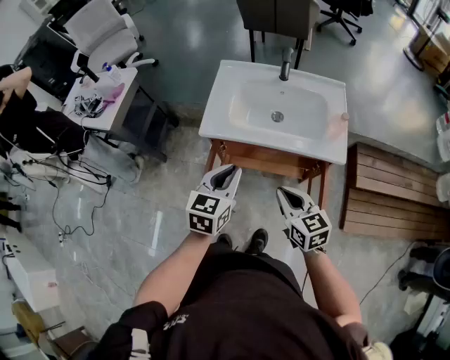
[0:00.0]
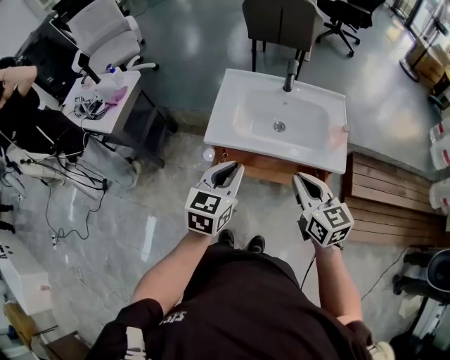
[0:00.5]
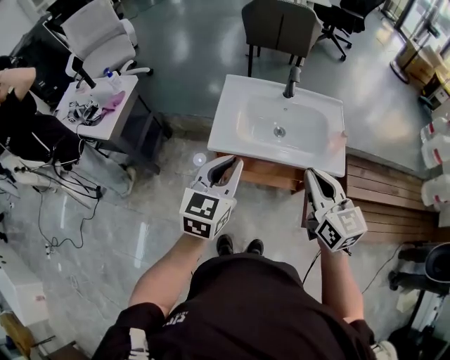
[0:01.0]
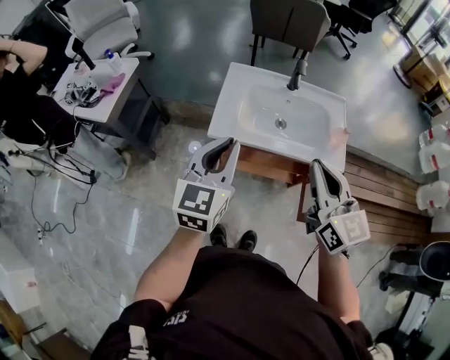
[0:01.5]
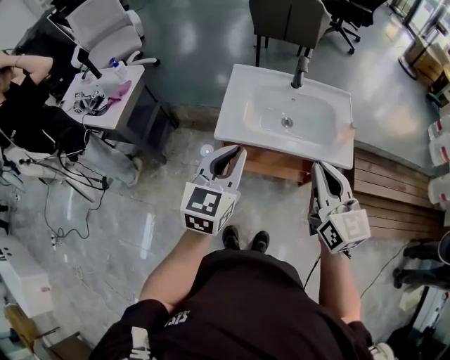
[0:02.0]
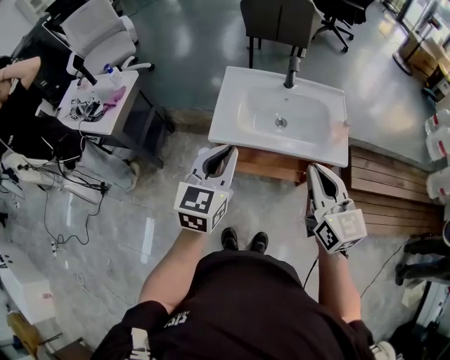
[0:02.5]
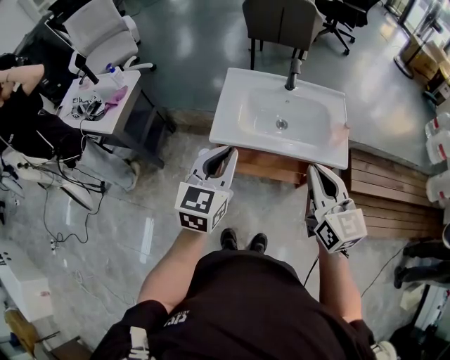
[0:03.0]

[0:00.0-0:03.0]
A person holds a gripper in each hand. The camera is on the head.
0:00.0 to 0:01.5: The right gripper shifts about 20 cm upward, and swivels about 30 degrees. The left gripper moves upward and to the left, about 15 cm.
0:01.5 to 0:03.0: There are only small adjustments of the grippers.

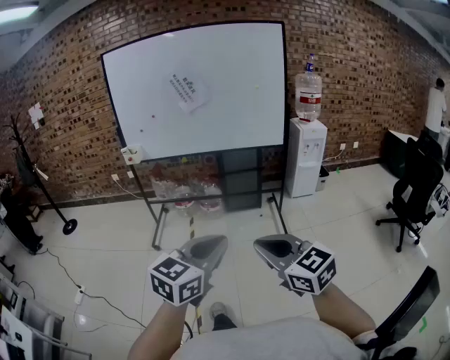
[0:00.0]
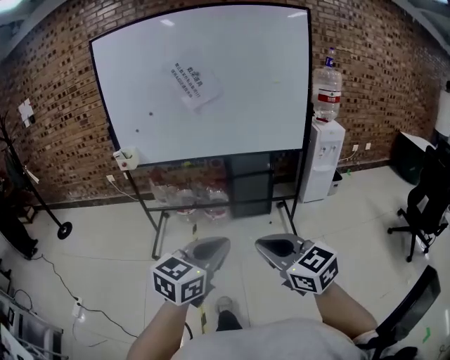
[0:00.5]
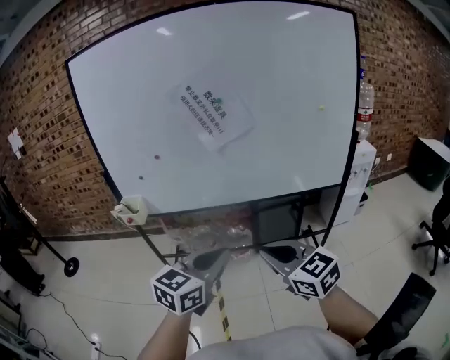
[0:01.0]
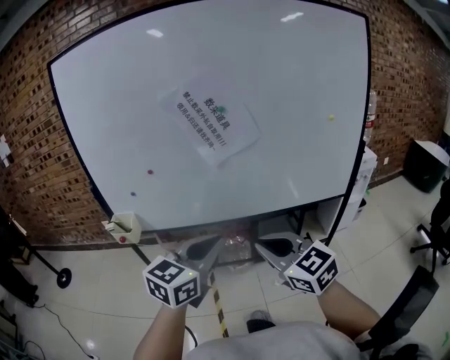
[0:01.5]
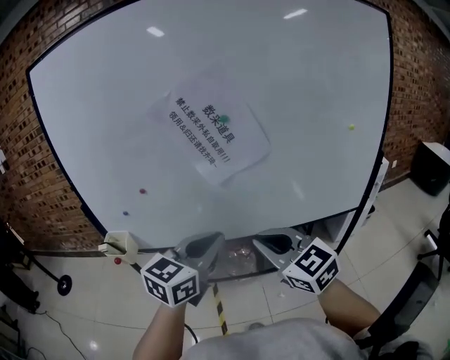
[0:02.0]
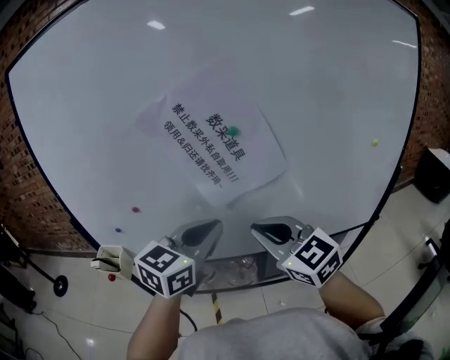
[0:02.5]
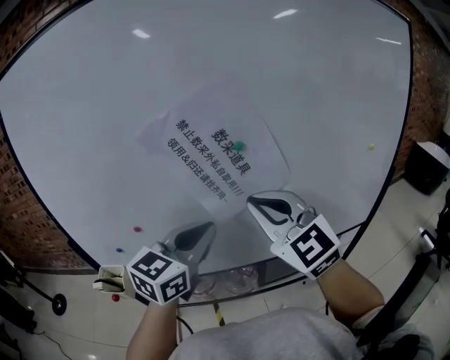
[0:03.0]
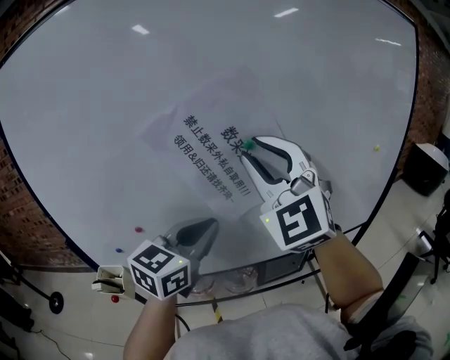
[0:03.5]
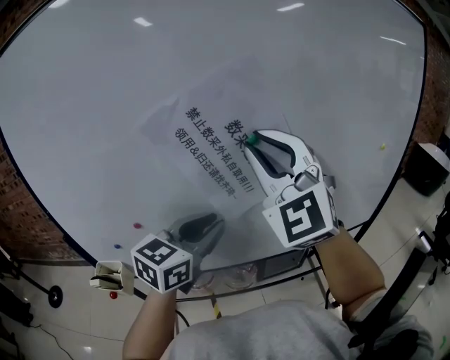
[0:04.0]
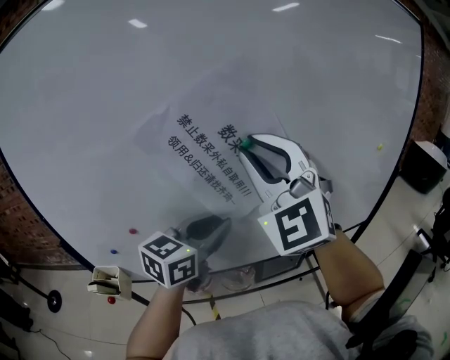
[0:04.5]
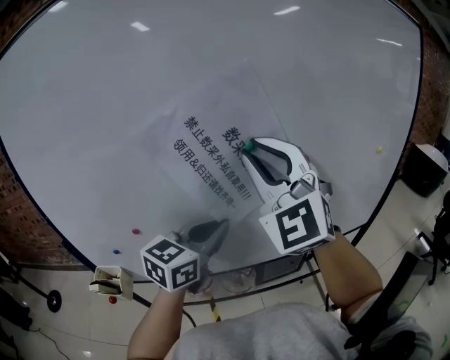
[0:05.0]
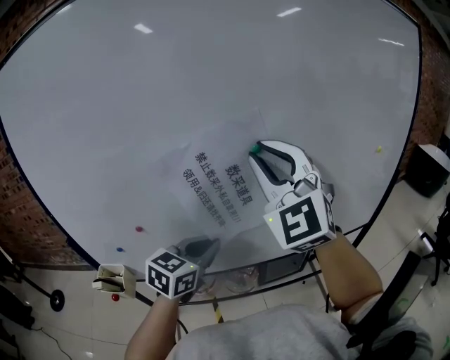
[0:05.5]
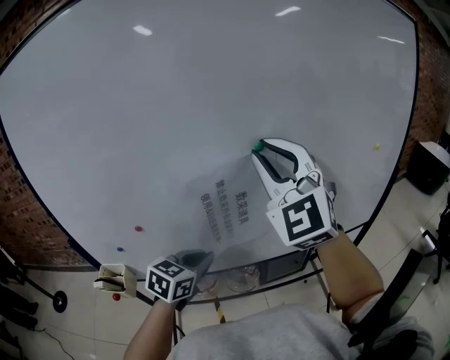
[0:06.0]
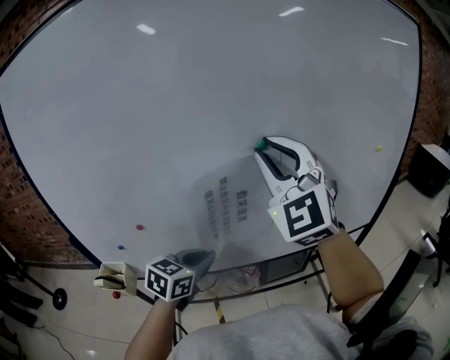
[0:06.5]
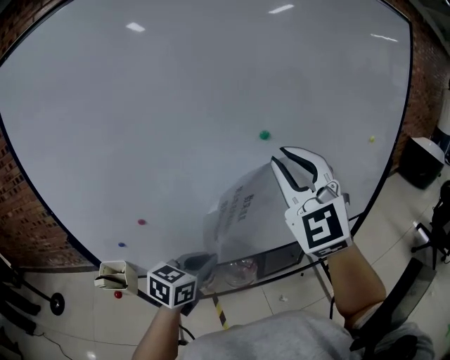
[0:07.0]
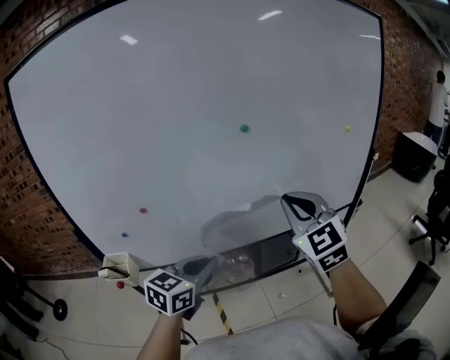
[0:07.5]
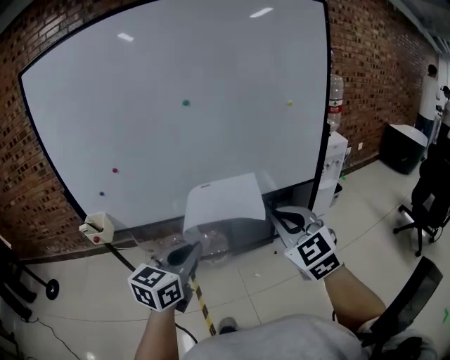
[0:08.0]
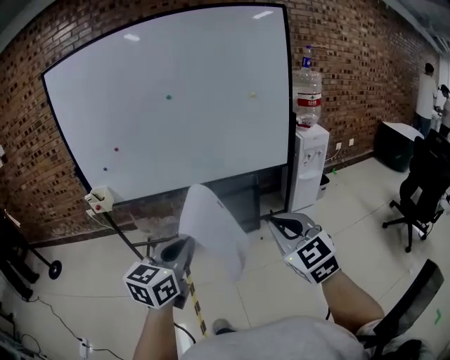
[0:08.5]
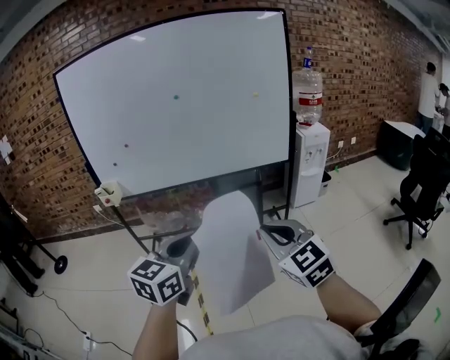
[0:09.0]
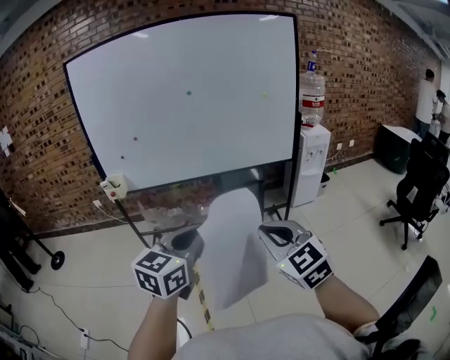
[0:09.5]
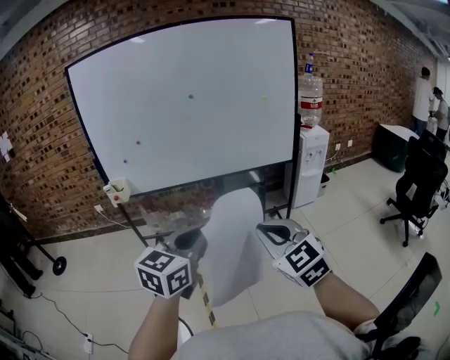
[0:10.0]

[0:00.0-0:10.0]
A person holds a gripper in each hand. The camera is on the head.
0:00.0 to 0:02.0: Both grippers are carried forward, roughly 70 cm.
0:02.0 to 0:04.0: The left gripper moves forward, about 15 cm; the right gripper shifts roughly 30 cm upward and forward, and changes its angle by about 50 degrees.
0:04.0 to 0:06.0: The left gripper heads downward, covering about 15 cm.
0:06.0 to 0:08.0: The right gripper travels backward, to the right and downward by some 40 cm, and rotates roughly 30 degrees; the left gripper travels backward and to the right by some 30 cm.
0:08.0 to 0:10.0: The grippers both shift backward by approximately 30 cm.

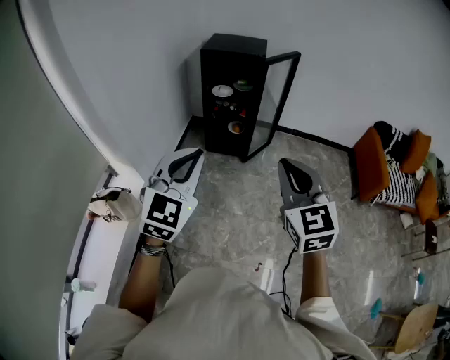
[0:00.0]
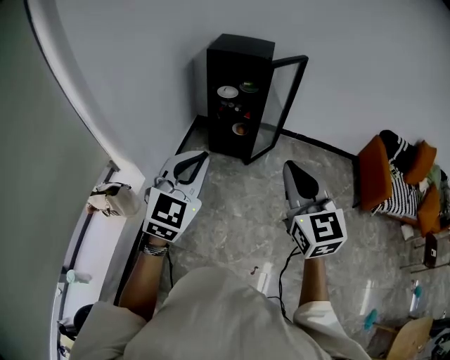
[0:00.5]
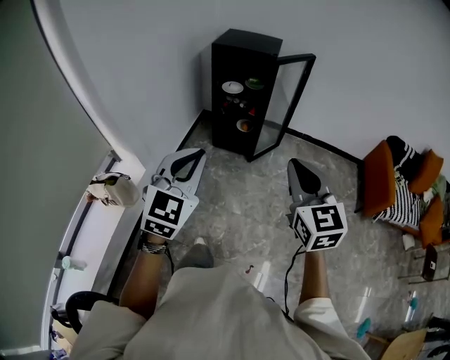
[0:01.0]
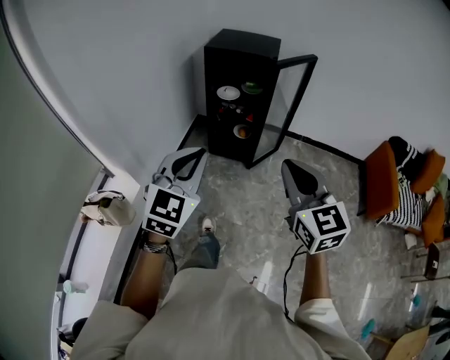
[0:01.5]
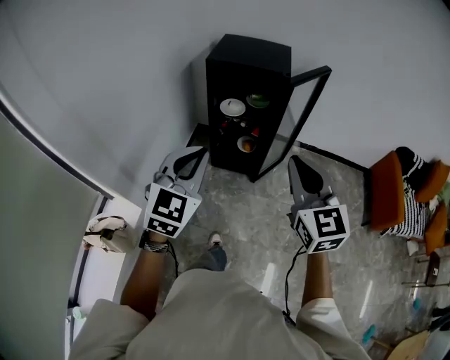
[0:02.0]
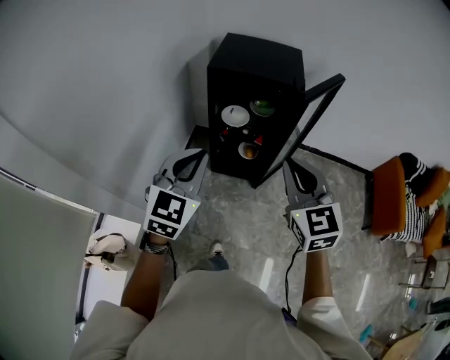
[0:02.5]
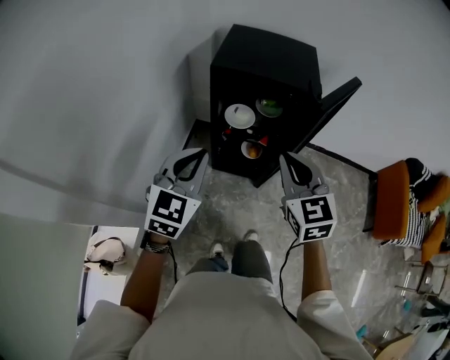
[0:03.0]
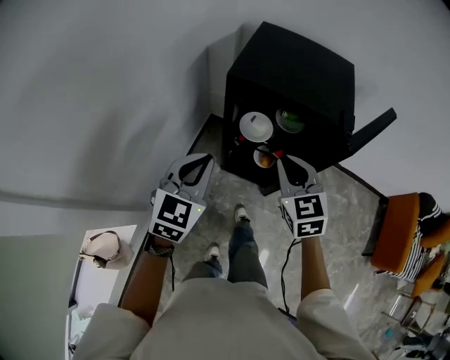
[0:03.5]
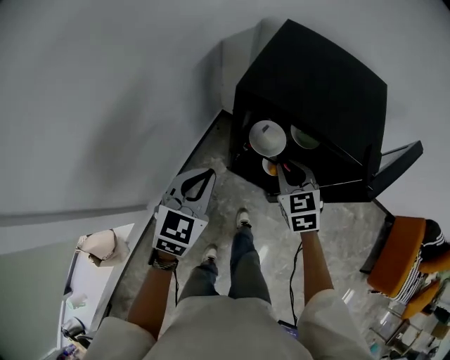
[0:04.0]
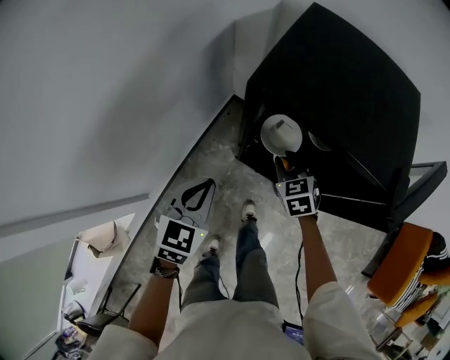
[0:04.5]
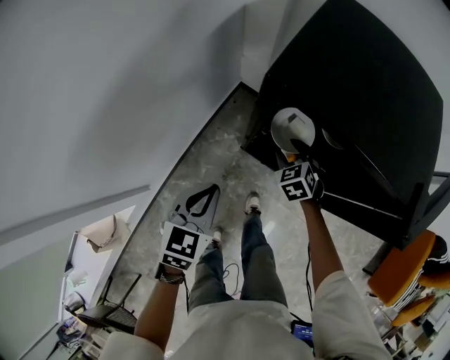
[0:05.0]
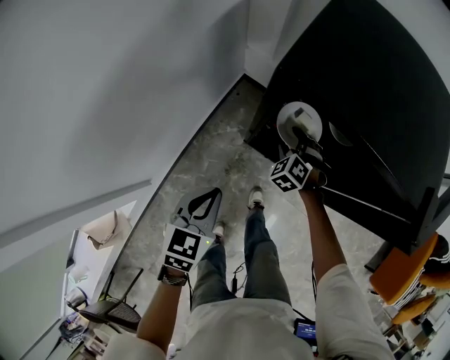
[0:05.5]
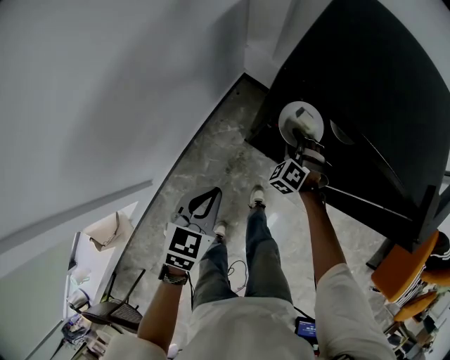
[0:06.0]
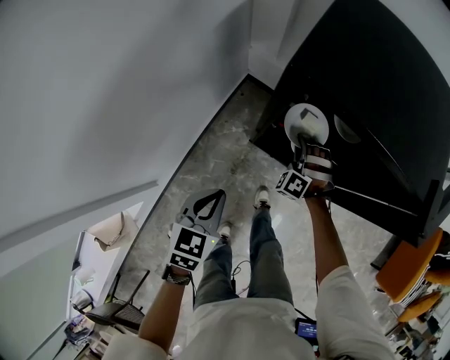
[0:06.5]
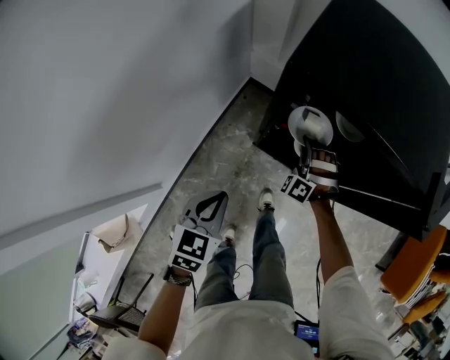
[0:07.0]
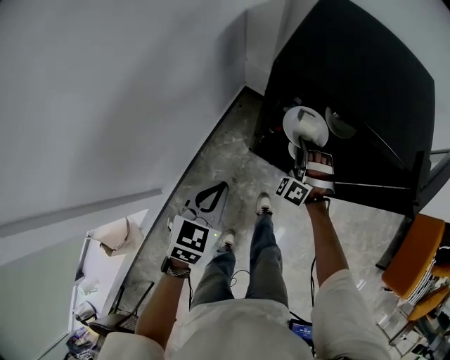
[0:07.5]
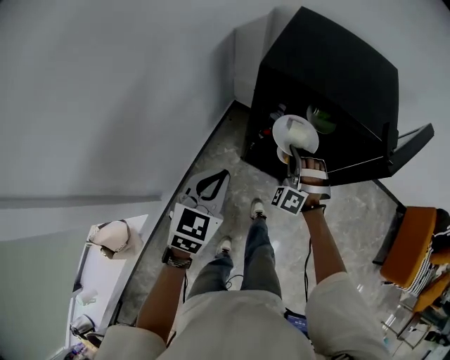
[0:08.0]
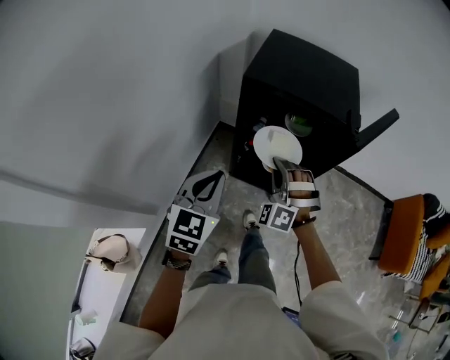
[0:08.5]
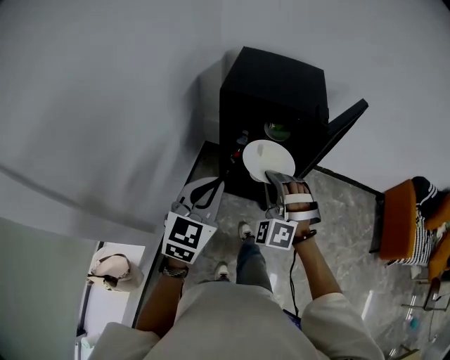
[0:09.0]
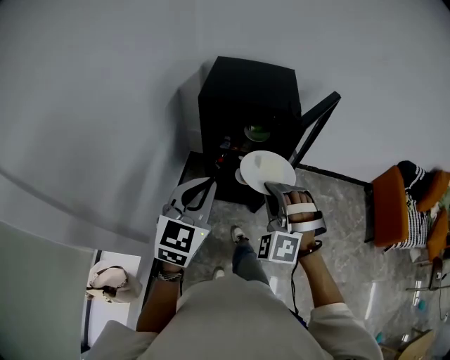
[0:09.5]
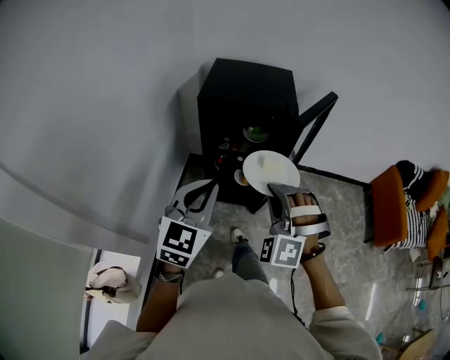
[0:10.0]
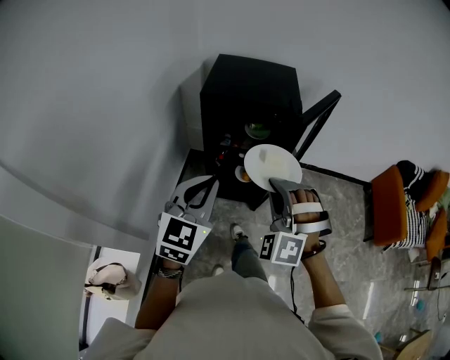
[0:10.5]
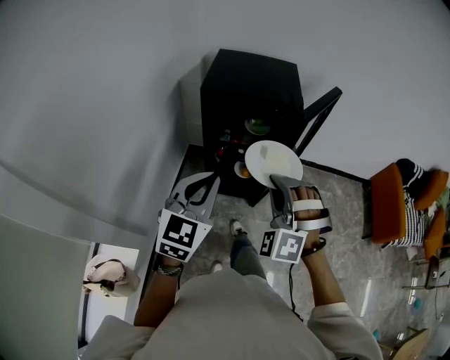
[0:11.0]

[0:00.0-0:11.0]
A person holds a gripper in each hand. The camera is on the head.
0:00.0 to 0:02.0: The grippers both shift forward by about 30 cm.
0:02.0 to 0:03.5: The left gripper moves forward, approximately 30 cm, while the right gripper is displaced forward and downward by about 40 cm, and rotates some 20 degrees.
0:03.5 to 0:05.5: The right gripper moves downward and forward, approximately 40 cm, rotates about 50 degrees, and opens up, while the left gripper goes some 20 cm downward, and rotates about 30 degrees.
0:05.5 to 0:07.5: The right gripper shifts roughly 10 cm upward, turns by some 40 degrees, and closes up.
0:07.5 to 0:09.0: The right gripper goes some 35 cm upward and backward; the left gripper goes some 25 cm upward and backward, and turns by some 30 degrees.
0:09.0 to 0:11.0: The right gripper travels backward, upward and to the right by some 10 cm; the left gripper shifts by some 5 cm.

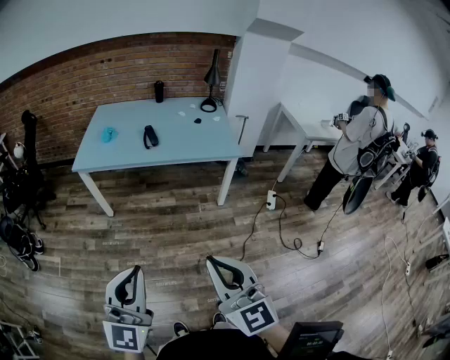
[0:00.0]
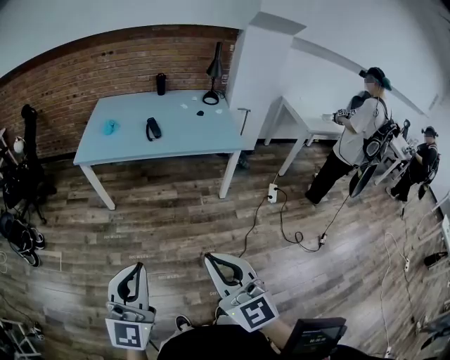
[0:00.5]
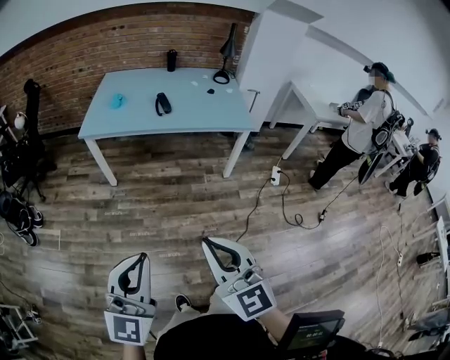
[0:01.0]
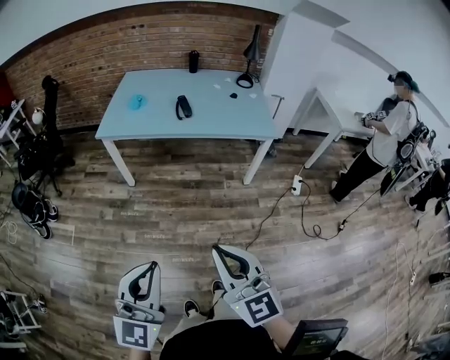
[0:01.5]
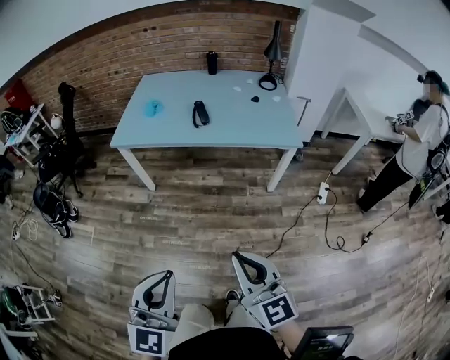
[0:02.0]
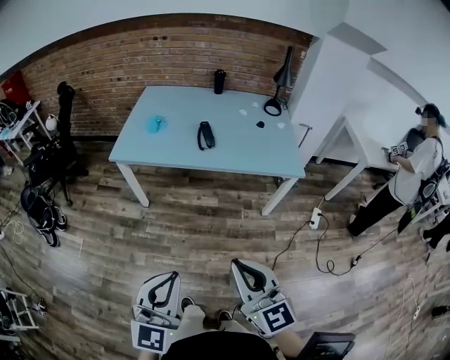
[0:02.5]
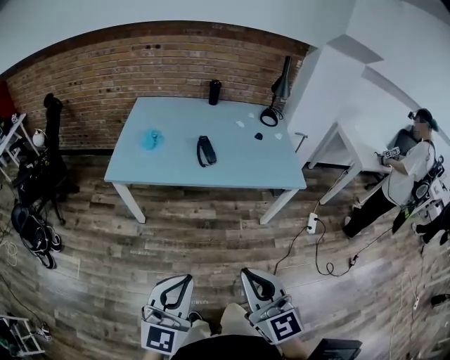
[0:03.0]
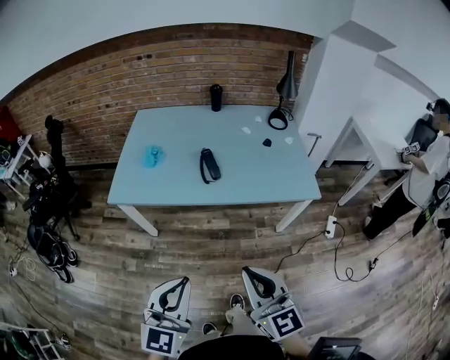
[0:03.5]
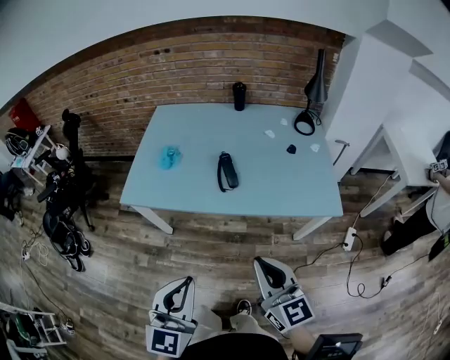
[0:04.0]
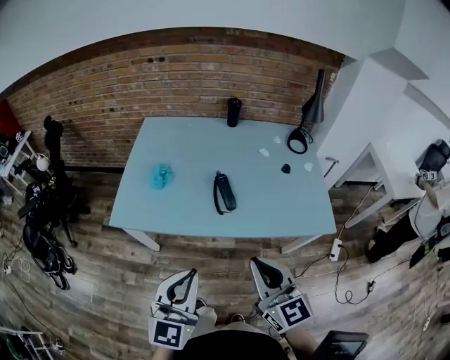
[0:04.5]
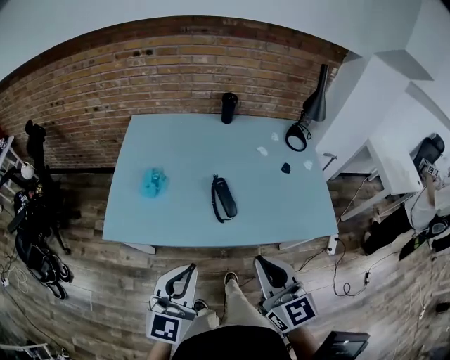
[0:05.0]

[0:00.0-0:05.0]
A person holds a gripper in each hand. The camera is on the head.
0:00.0 to 0:02.5: The two grippers go roughly 20 cm forward.
0:02.5 to 0:05.0: Both grippers are carried forward, roughly 50 cm.
